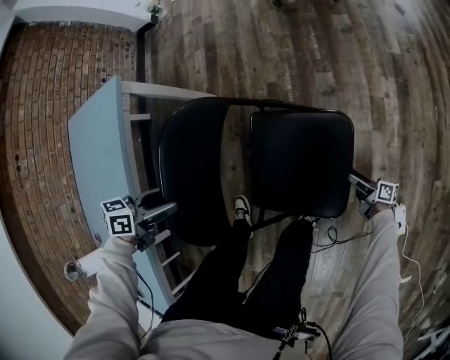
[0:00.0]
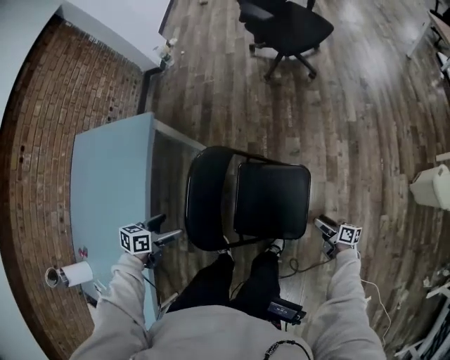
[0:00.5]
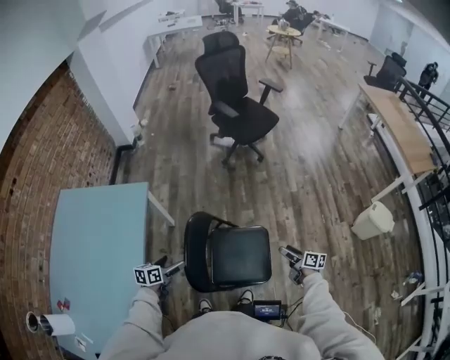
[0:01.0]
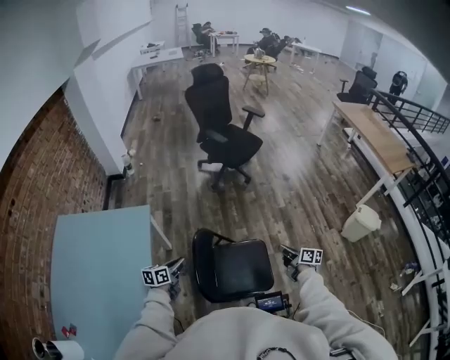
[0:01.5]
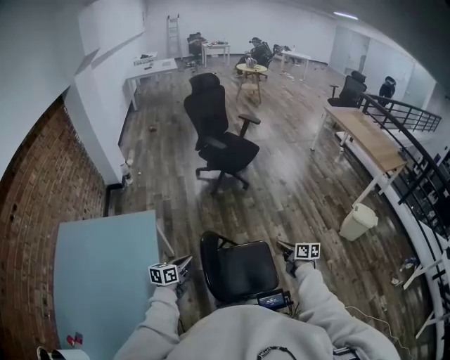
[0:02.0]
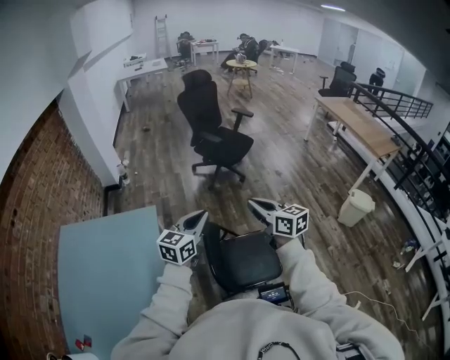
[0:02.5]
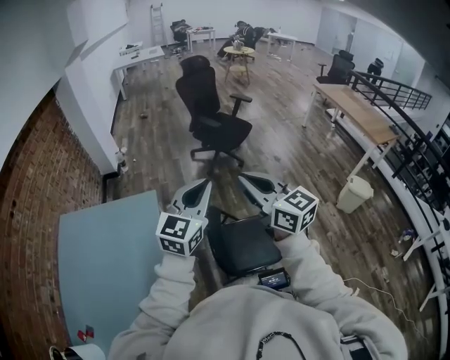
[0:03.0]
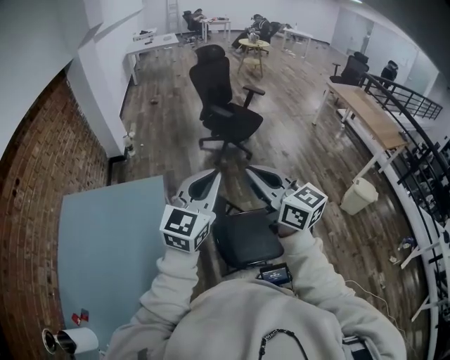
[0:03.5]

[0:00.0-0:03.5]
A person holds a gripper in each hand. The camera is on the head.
0:00.0 to 0:02.0: The left gripper goes roughly 25 cm upward, turns by approximately 30 degrees, and closes its fingers; the right gripper goes approximately 60 cm upward, rotates approximately 50 degrees, and closes up.
0:02.0 to 0:03.5: The right gripper moves upward and to the left, about 50 cm, and rotates roughly 50 degrees. The left gripper travels upward by some 35 cm, and rolls clockwise, seen from behind, by approximately 40 degrees.

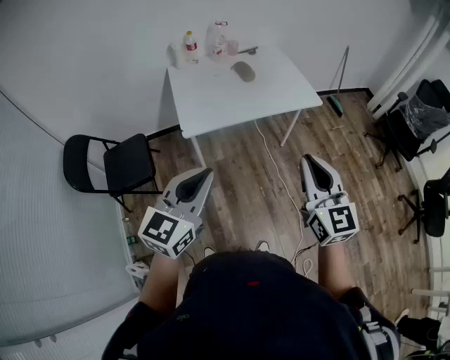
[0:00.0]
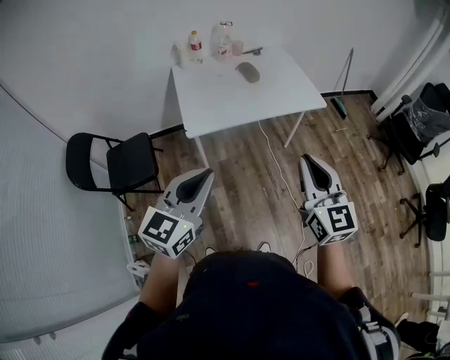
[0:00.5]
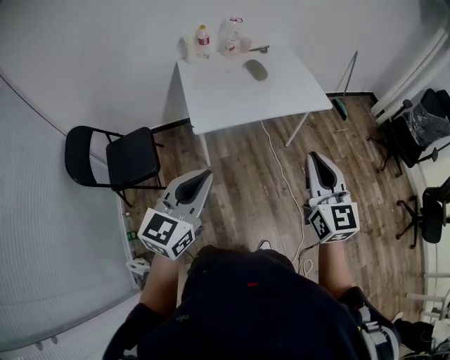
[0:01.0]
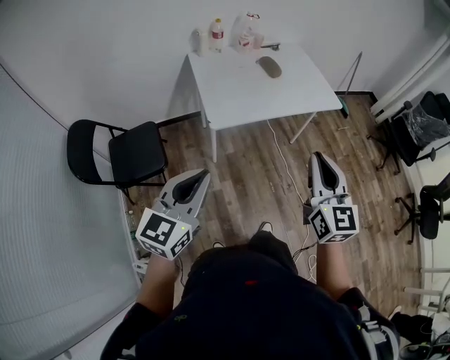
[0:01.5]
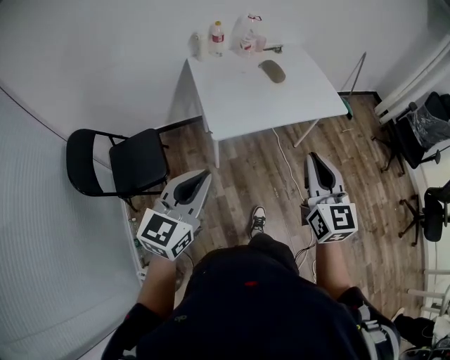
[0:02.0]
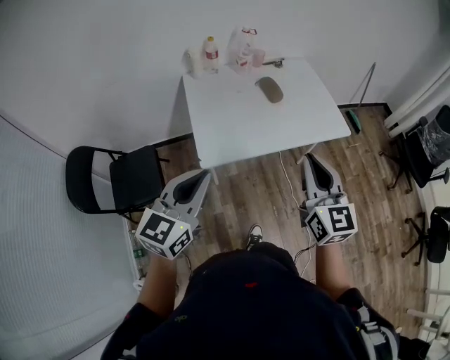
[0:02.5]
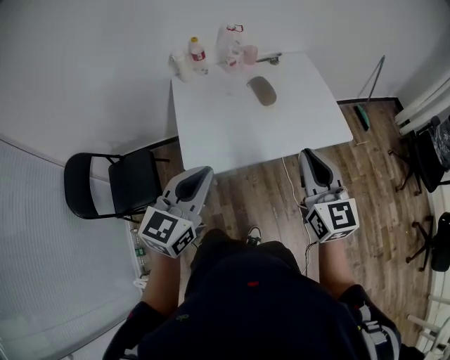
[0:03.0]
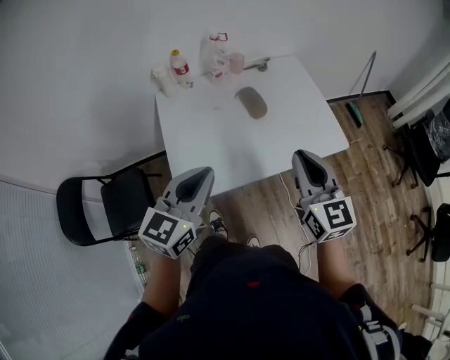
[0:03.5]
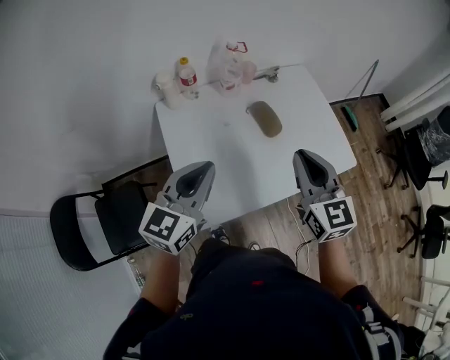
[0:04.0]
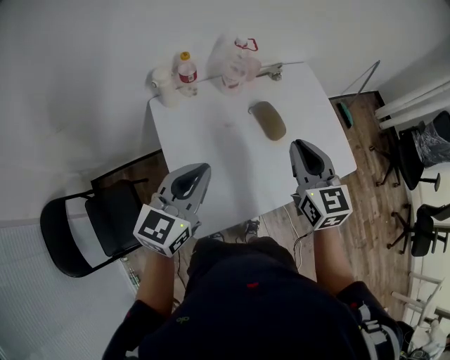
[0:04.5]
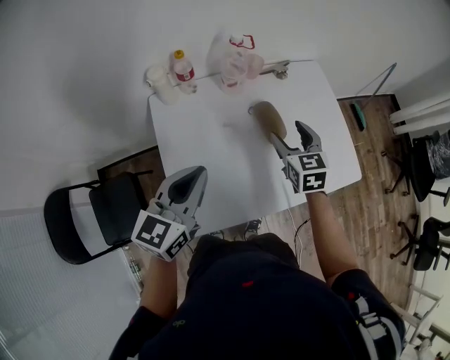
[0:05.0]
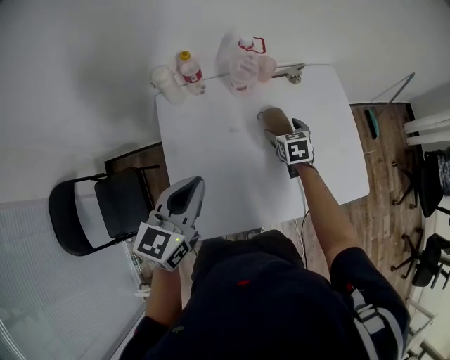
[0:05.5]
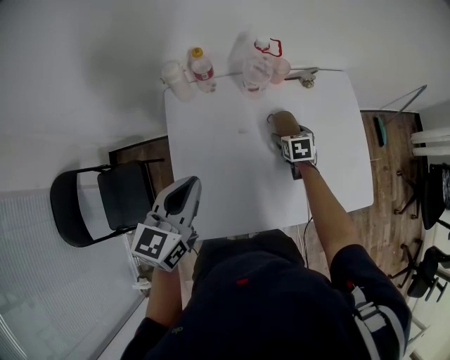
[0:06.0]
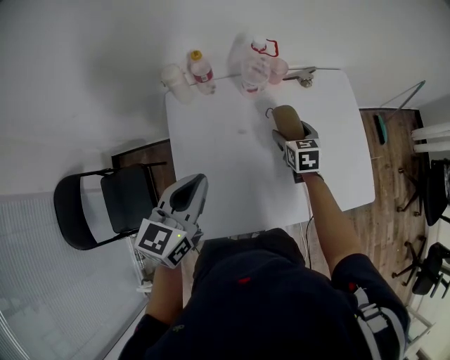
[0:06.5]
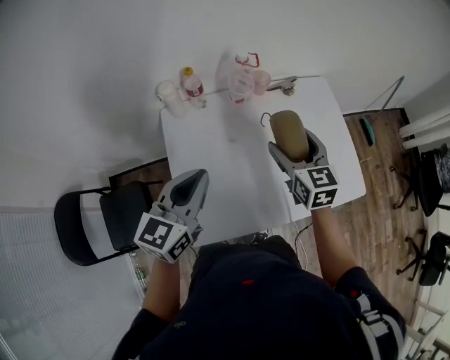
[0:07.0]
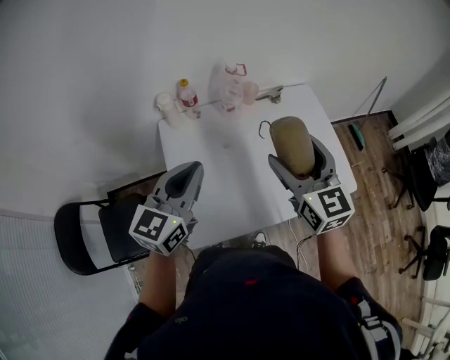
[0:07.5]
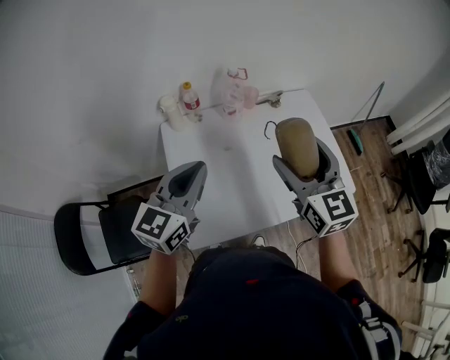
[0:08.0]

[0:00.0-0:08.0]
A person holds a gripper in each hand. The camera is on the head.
0:00.0 to 0:02.0: The grippers both shift to the left by roughly 15 cm.
0:02.0 to 0:04.0: The two grippers travel together, forward, some 40 cm.
0:04.0 to 0:06.0: The left gripper shifts some 10 cm forward and downward, and changes its angle by about 20 degrees. The right gripper travels downward and forward by some 40 cm, points its fingers roughly 40 degrees further downward, and opens up.
0:06.0 to 0:08.0: The right gripper goes about 50 cm upward and backward, and tilts its fingers about 50 degrees upward. Meanwhile the left gripper goes approximately 10 cm upward, and swivels some 20 degrees.

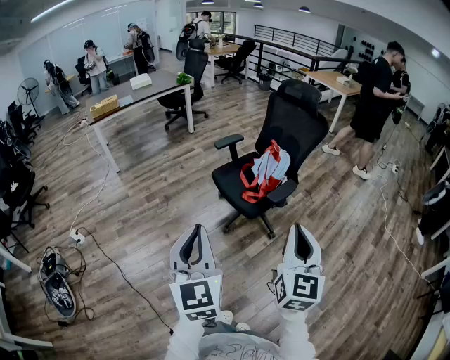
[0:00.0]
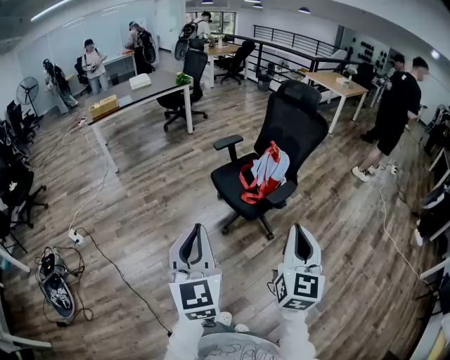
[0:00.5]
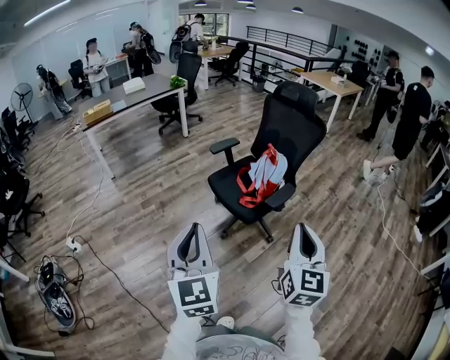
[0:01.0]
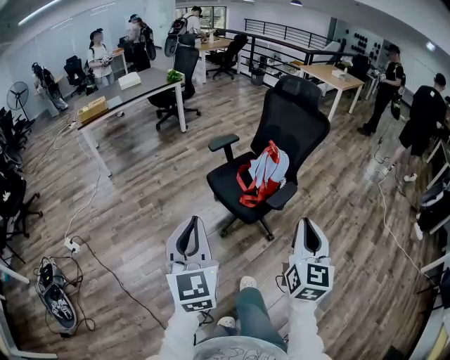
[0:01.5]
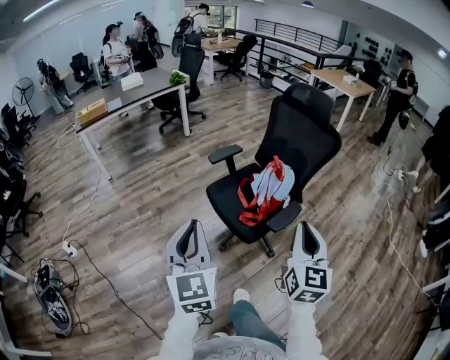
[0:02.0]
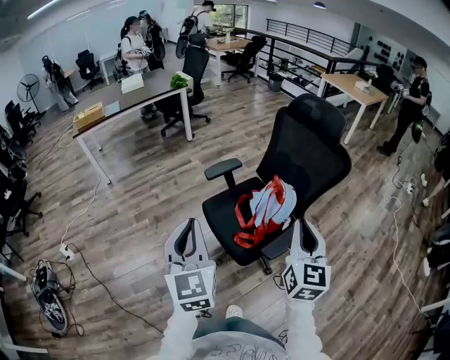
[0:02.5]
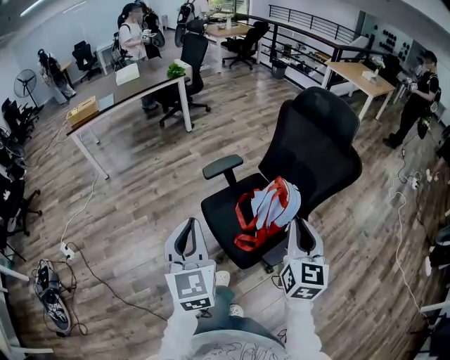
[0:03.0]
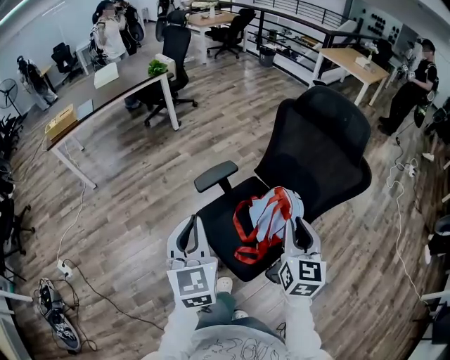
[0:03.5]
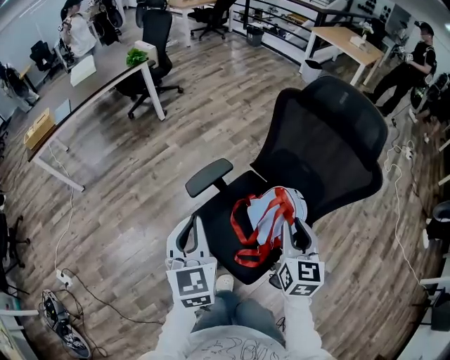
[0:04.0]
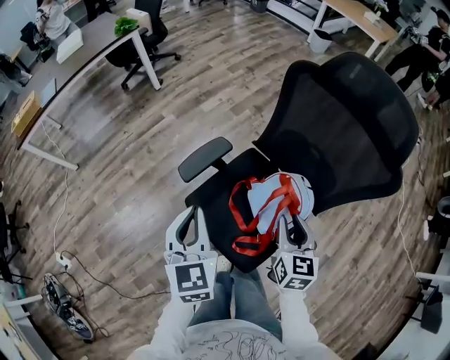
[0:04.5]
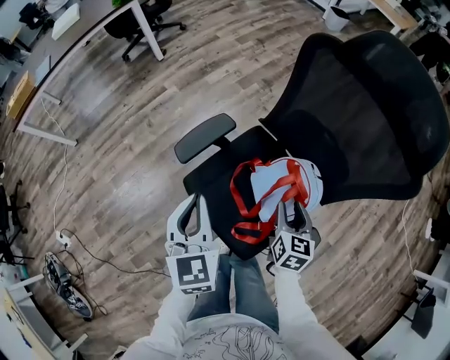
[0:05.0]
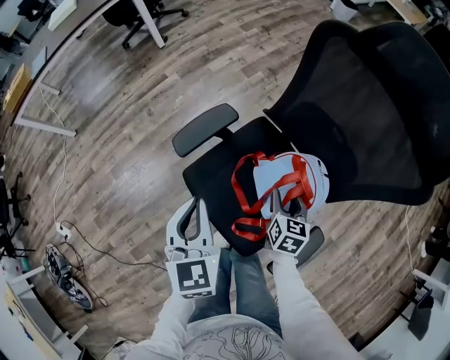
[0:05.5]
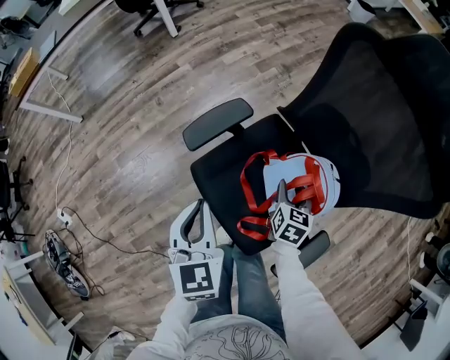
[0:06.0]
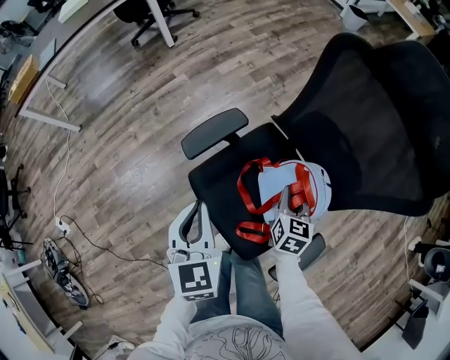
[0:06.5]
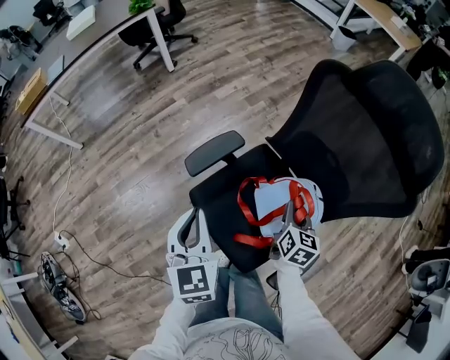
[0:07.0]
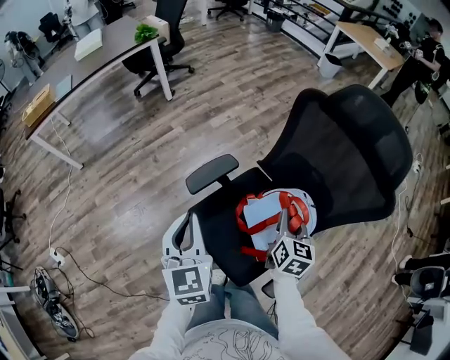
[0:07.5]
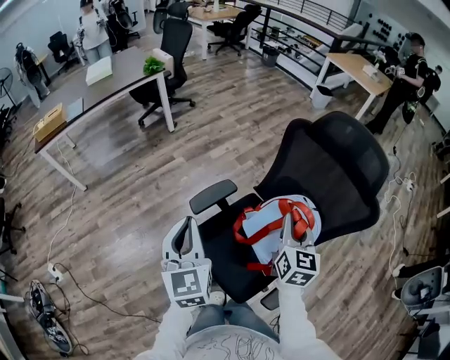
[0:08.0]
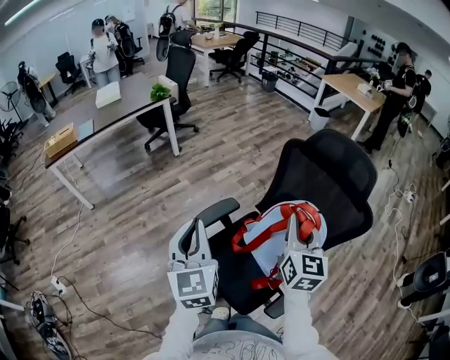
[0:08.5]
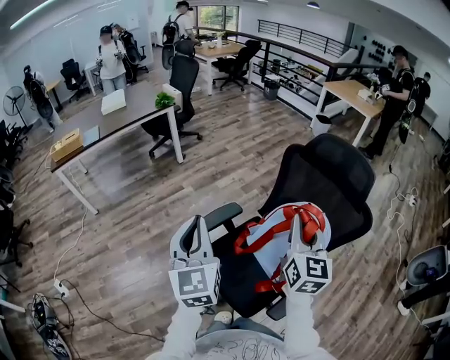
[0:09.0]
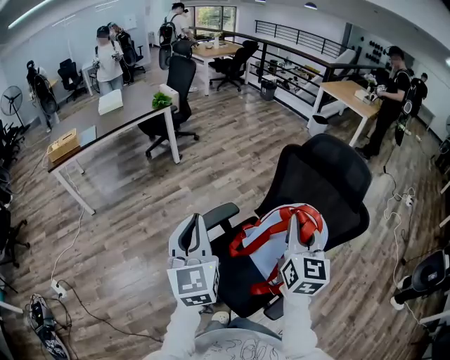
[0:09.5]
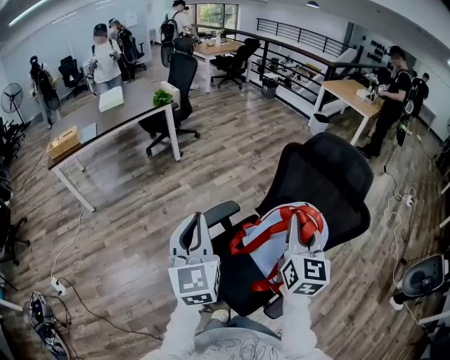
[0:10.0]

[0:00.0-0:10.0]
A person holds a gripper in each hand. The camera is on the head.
0:00.0 to 0:02.0: The grippers both shift forward by roughly 25 cm.
0:02.0 to 0:04.0: Both grippers are carried forward, roughly 40 cm. The right gripper opens up.
0:04.0 to 0:06.0: The right gripper travels downward by roughly 30 cm, swivels approximately 30 degrees, and opens its fingers; the left gripper shifts approximately 15 cm downward.
0:06.0 to 0:08.0: The left gripper travels upward by some 20 cm, and swivels some 20 degrees. Meanwhile the right gripper goes approximately 35 cm upward, changes its angle by roughly 30 degrees, and closes up.
0:08.0 to 0:10.0: The grippers both shift upward by about 10 cm.

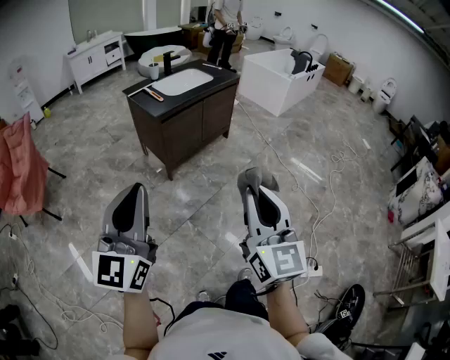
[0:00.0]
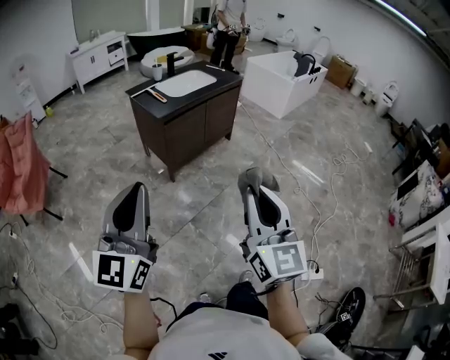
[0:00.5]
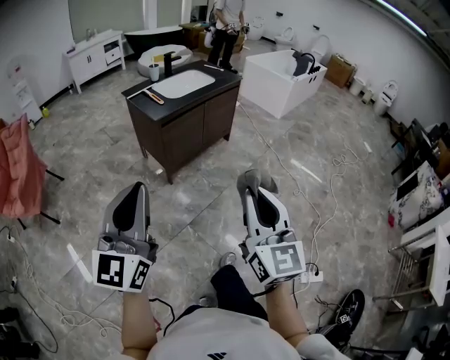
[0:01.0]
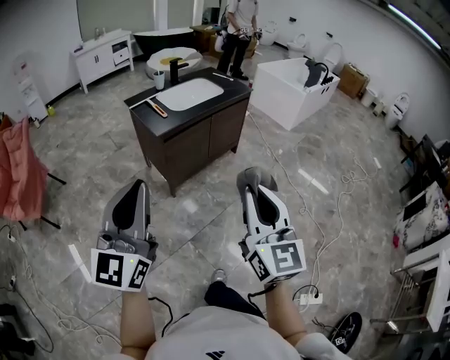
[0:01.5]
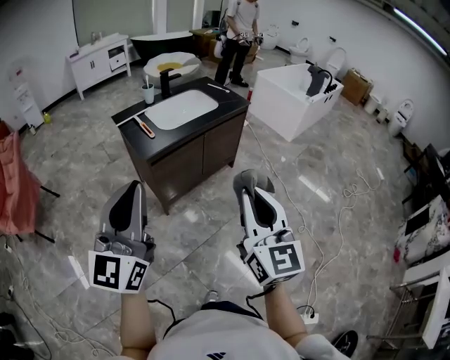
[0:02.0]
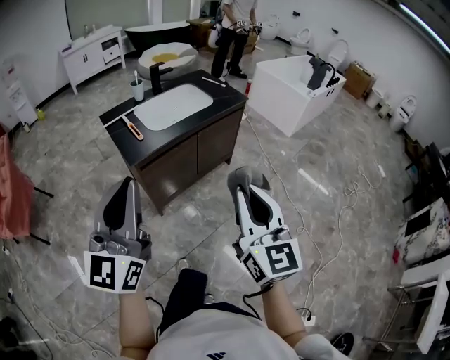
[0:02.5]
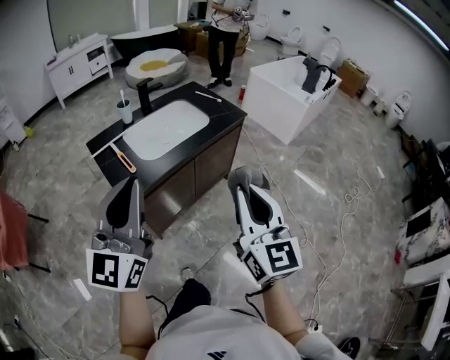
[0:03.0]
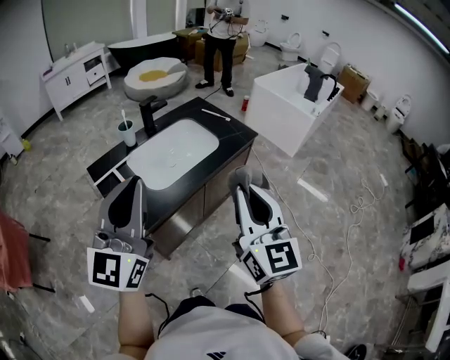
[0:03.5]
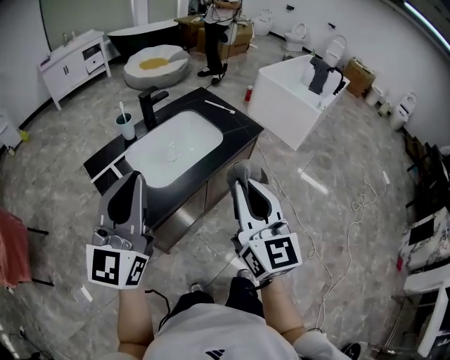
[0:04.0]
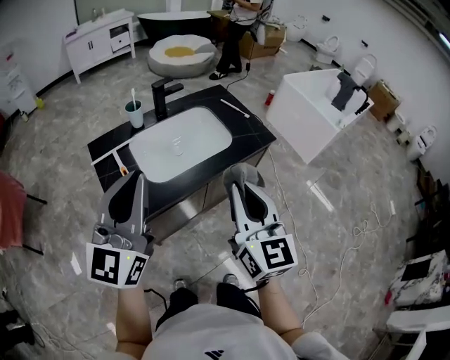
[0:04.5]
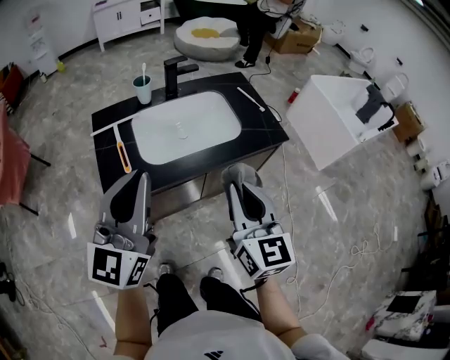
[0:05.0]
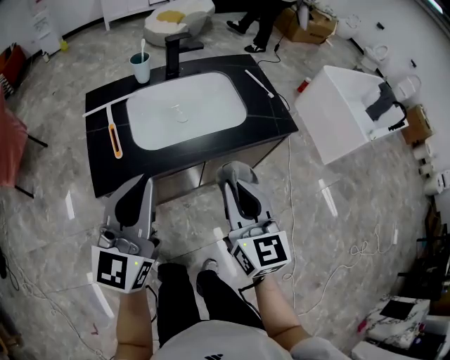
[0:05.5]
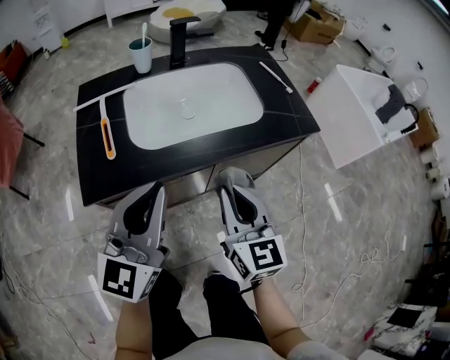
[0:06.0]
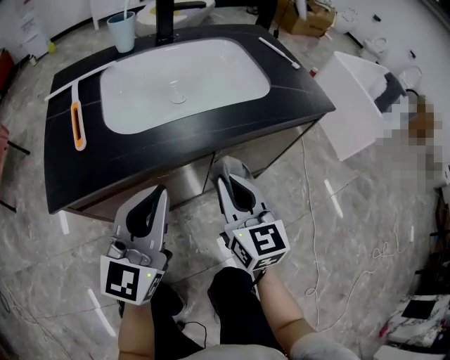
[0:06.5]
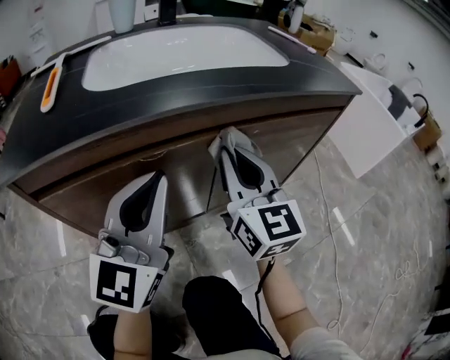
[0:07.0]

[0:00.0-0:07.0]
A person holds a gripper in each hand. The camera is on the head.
0:00.0 to 0:02.0: The grippers both shift forward by some 30 cm.
0:02.0 to 0:03.5: Both grippers move forward, roughly 35 cm.
0:03.5 to 0:05.0: The left gripper goes some 10 cm to the right, downward and forward; the right gripper shifts approximately 15 cm forward and downward, and changes its angle by some 30 degrees.
0:05.0 to 0:07.0: Both grippers travel together downward, some 40 cm.
